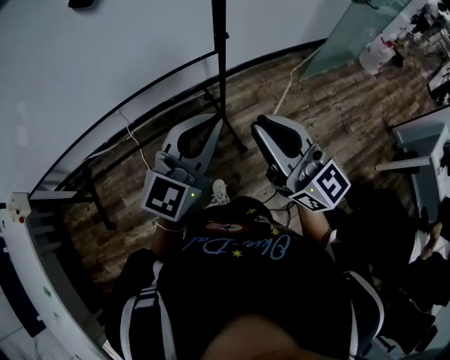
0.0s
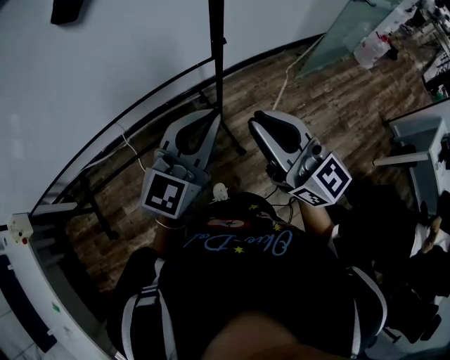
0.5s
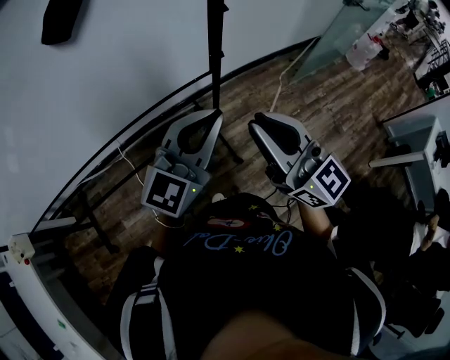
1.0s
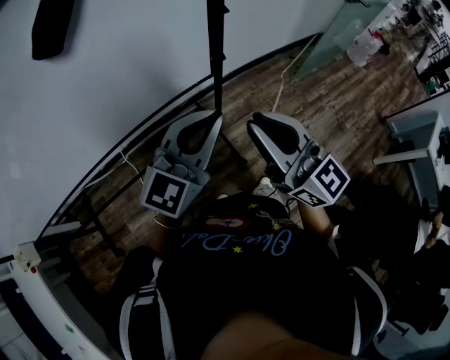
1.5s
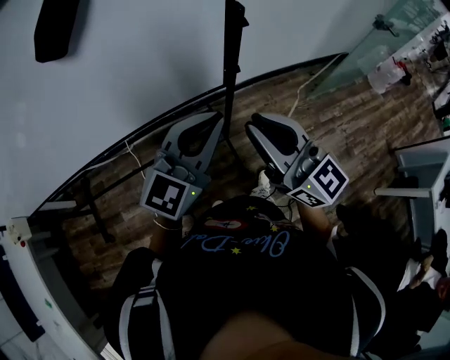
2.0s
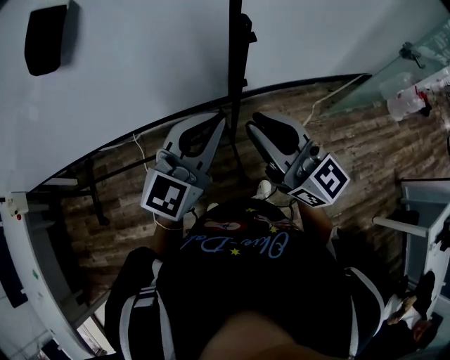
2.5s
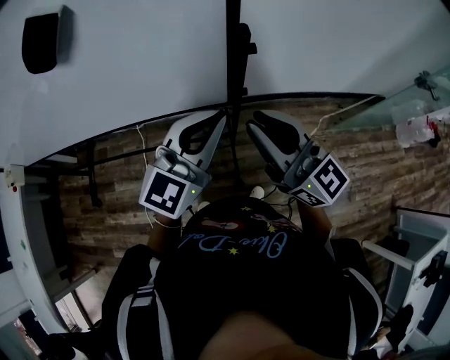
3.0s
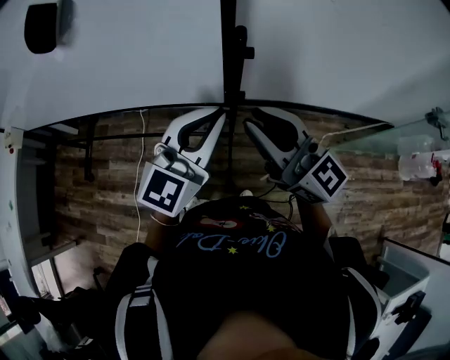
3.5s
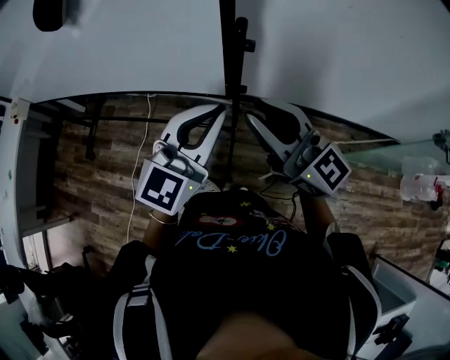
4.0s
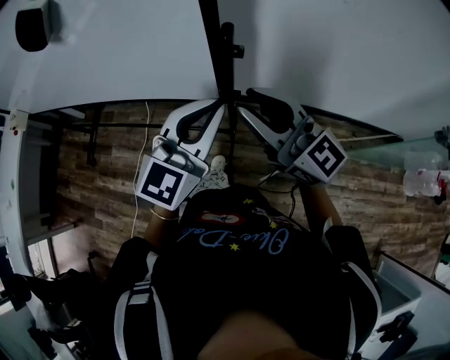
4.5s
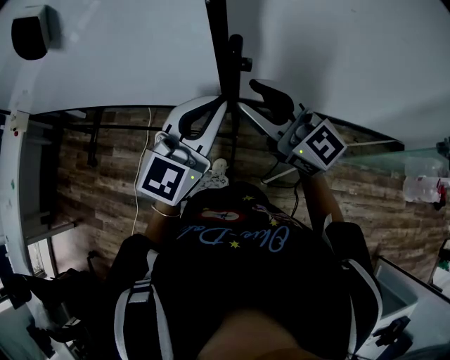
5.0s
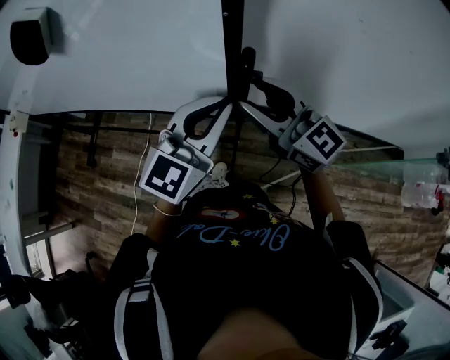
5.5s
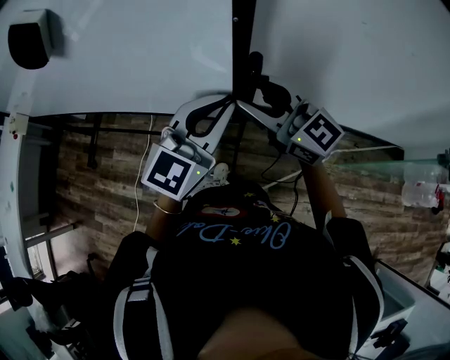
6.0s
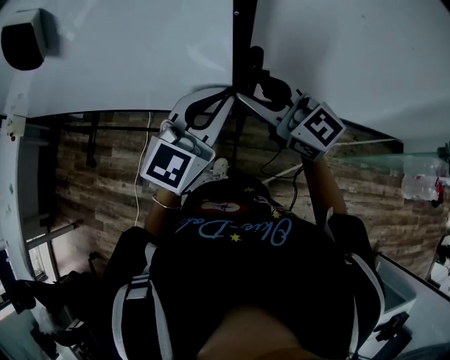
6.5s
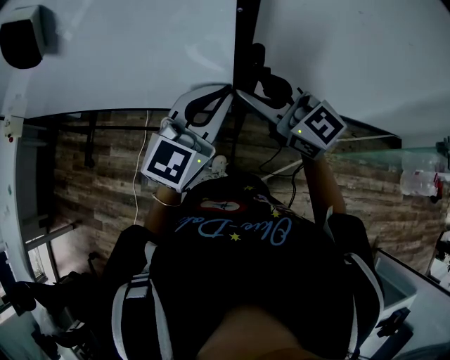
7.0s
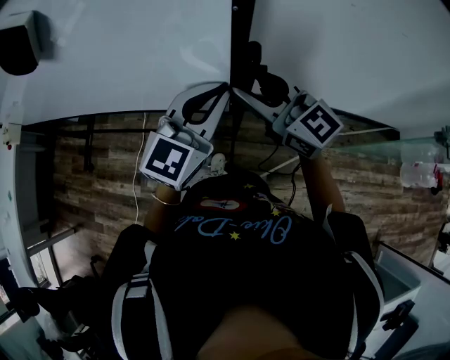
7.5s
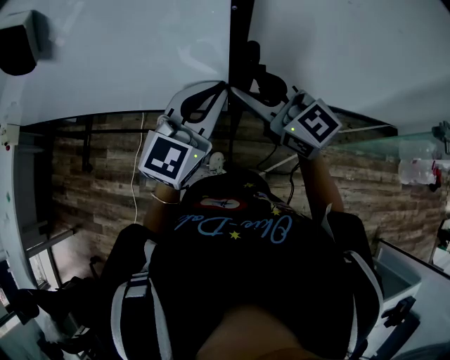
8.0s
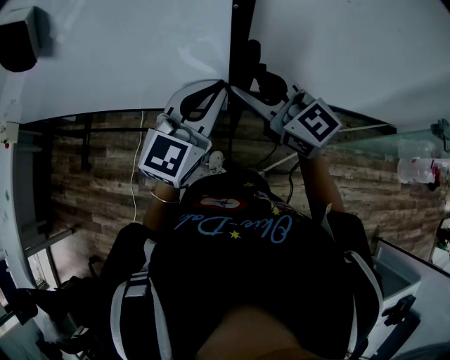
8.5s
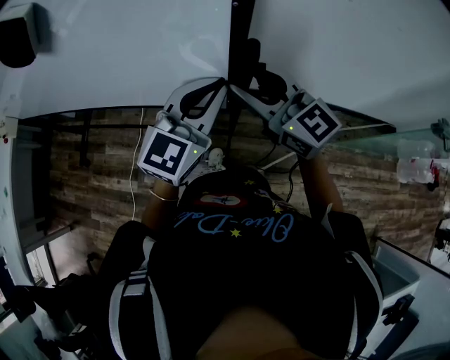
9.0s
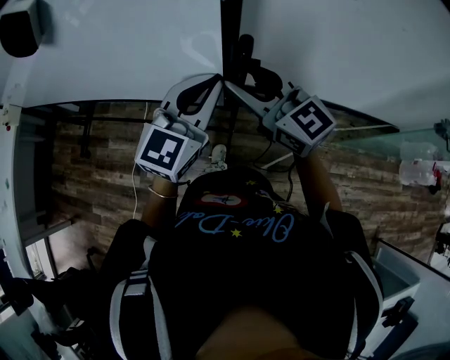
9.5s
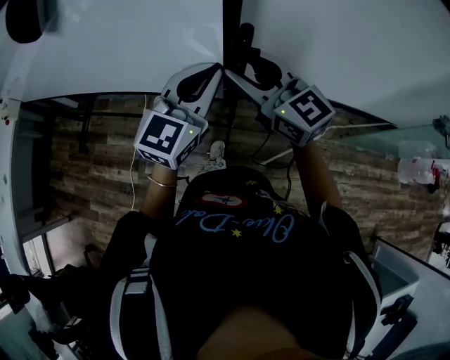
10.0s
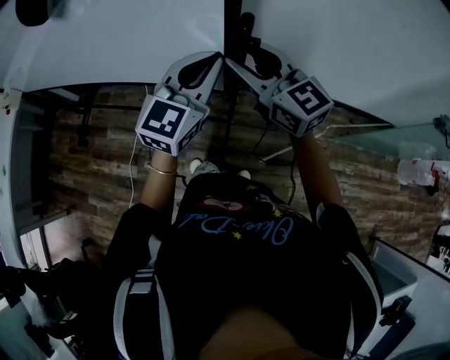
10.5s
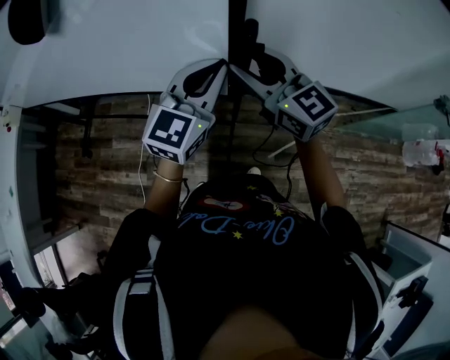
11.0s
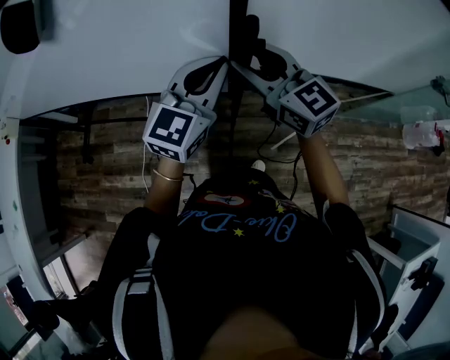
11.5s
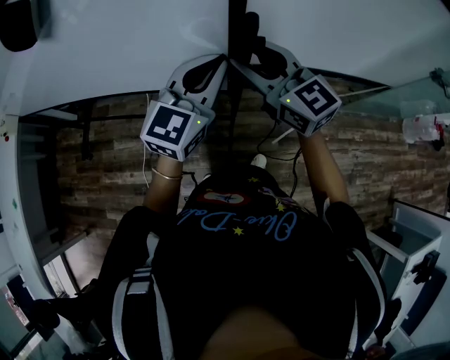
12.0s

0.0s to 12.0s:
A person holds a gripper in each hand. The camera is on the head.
0.0s to 2.0s: Both grippers travel together forward, about 15 cm.
2.0s to 4.0s: The left gripper ends up some 10 cm from where it was, and swivels some 30 degrees. The right gripper changes place by roughly 15 cm, and turns by some 40 degrees.
4.0s to 6.0s: The grippers both shift forward by roughly 10 cm. The right gripper opens its fingers.
6.0s to 10.0s: The grippers move only a little.
10.0s to 12.0s: The right gripper ends up some 5 cm from where it was, while the left gripper moves about 5 cm.

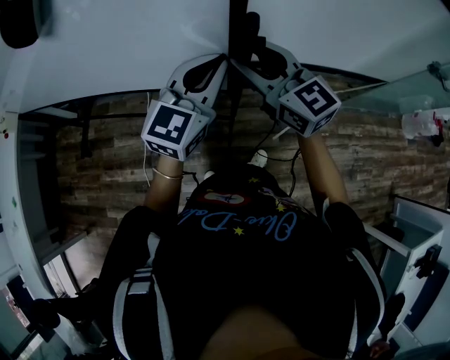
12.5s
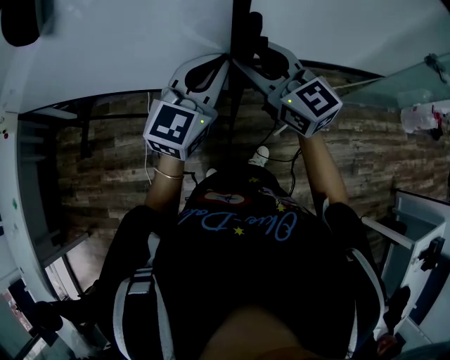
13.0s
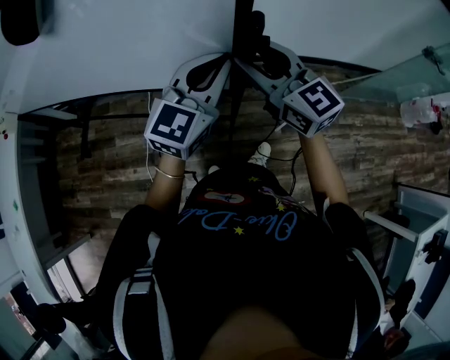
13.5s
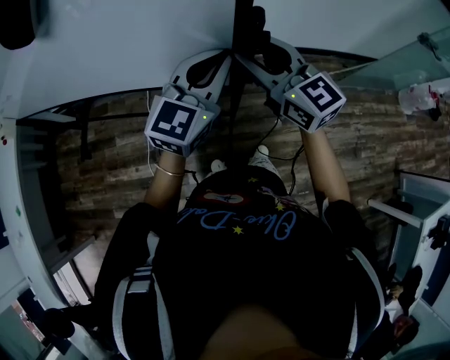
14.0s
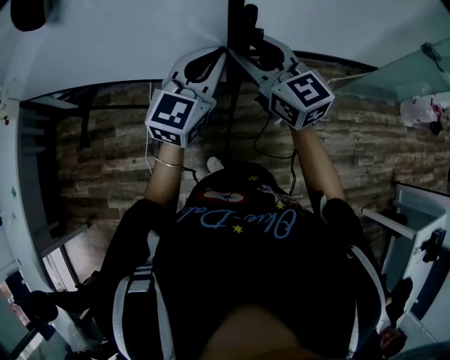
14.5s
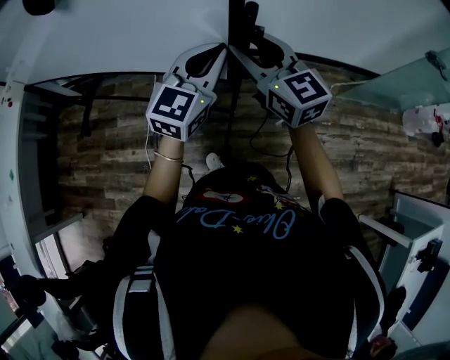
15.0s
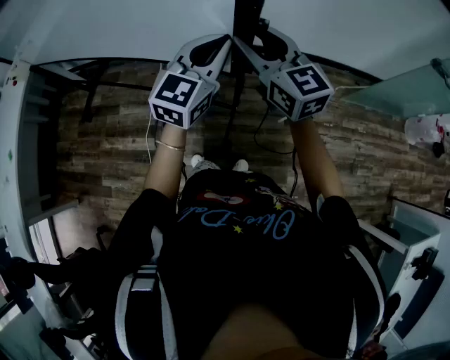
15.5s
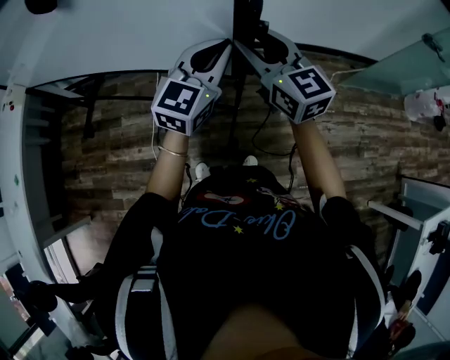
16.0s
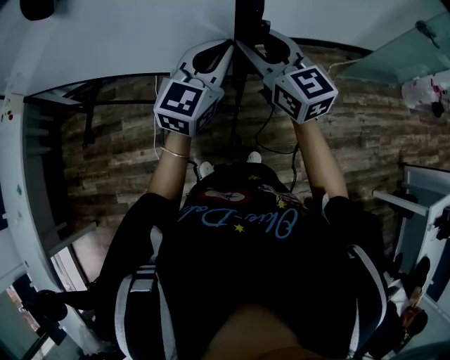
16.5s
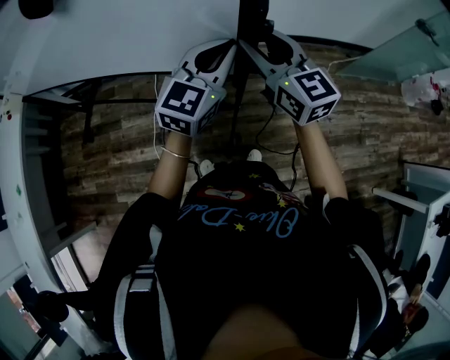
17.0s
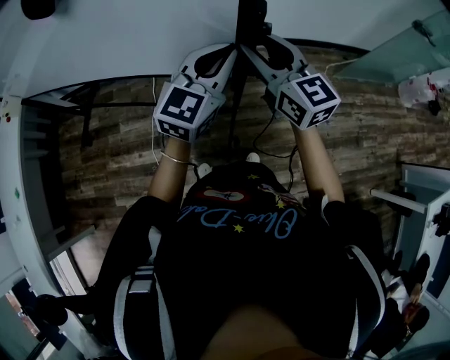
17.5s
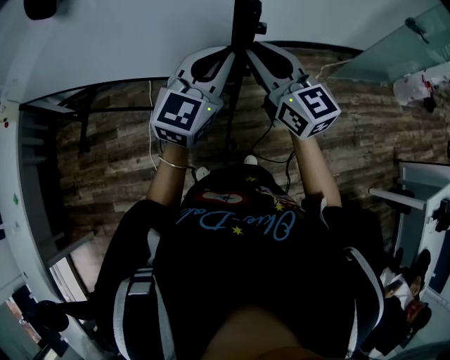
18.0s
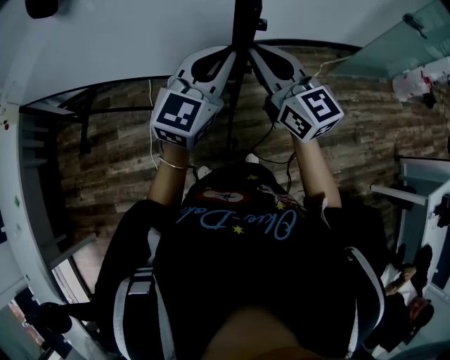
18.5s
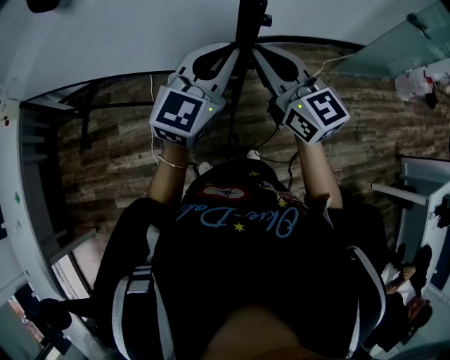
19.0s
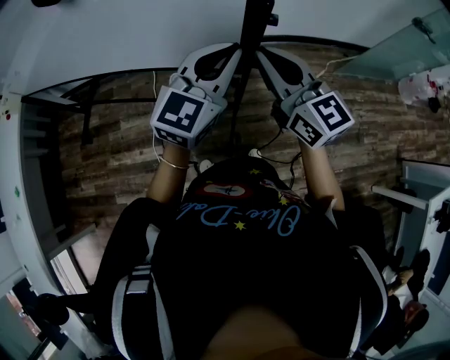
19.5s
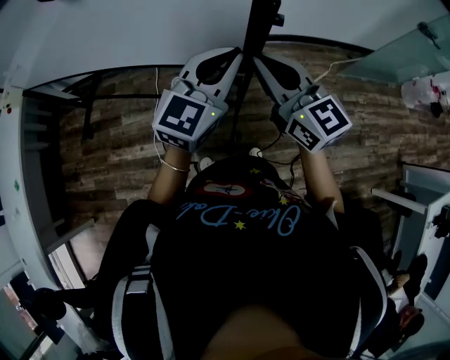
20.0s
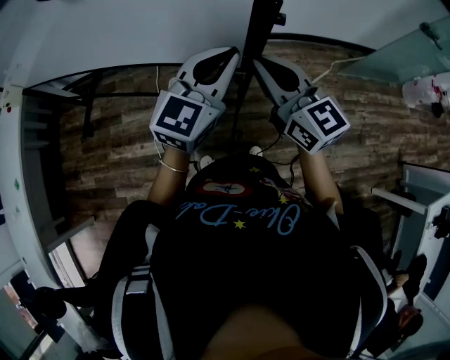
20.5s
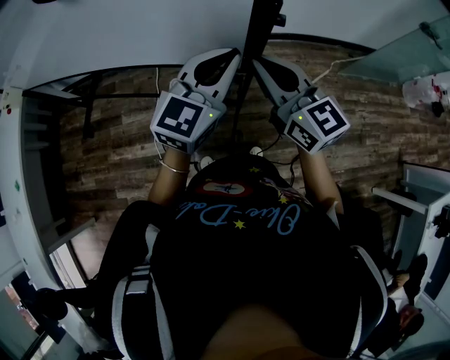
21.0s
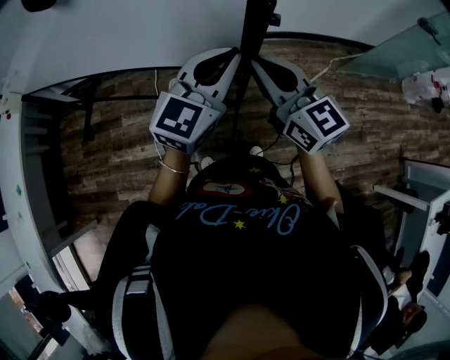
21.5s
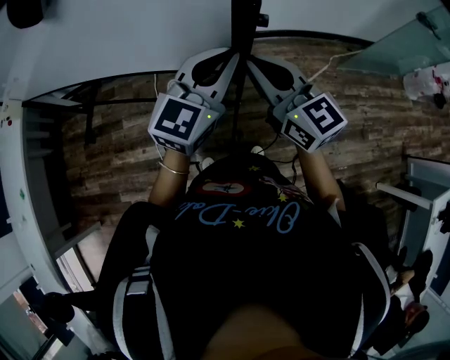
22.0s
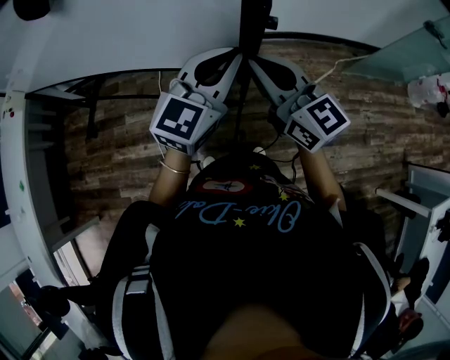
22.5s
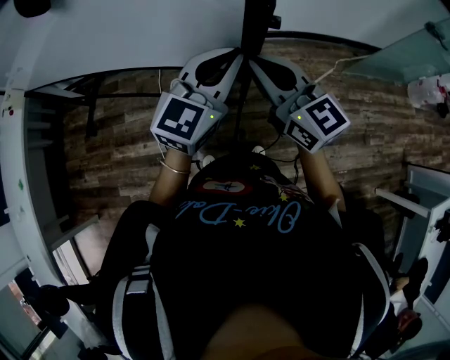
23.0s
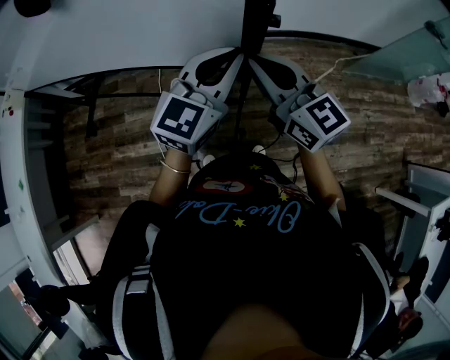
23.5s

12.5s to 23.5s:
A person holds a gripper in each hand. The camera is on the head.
12.5s to 14.5s: The two grippers go approximately 5 cm backward.
14.5s to 16.0s: There are only small adjustments of the grippers.
16.0s to 18.0s: The right gripper closes its fingers.
18.0s to 20.0s: The grippers stay close to where they were, moving slightly.
20.0s to 21.5s: The two grippers keep their place.
21.5s to 23.5s: The grippers move only a little.

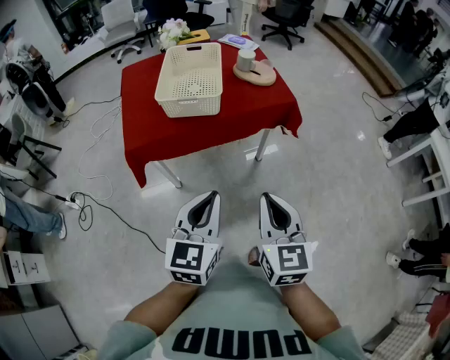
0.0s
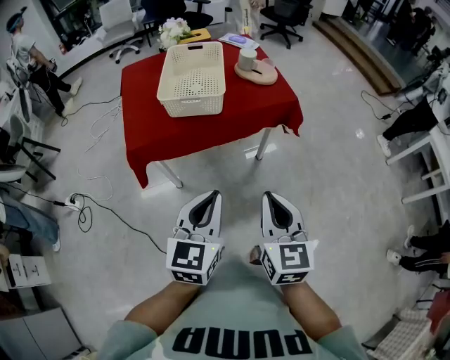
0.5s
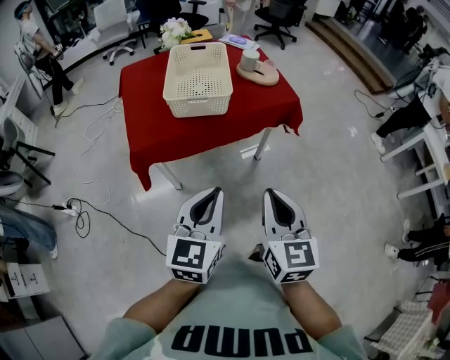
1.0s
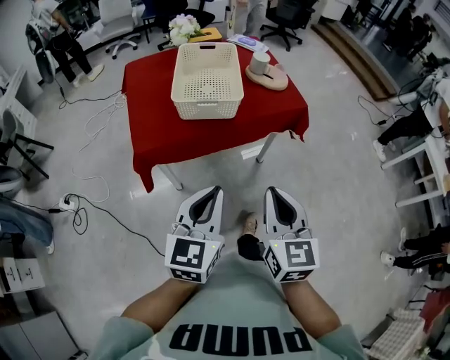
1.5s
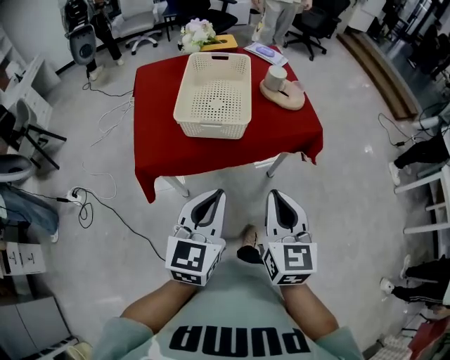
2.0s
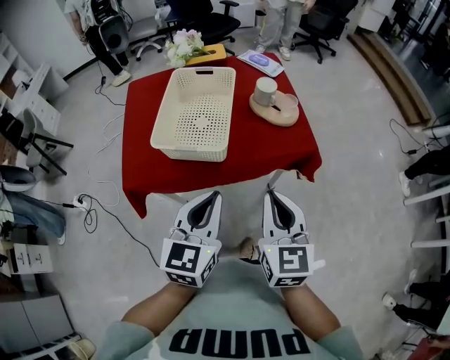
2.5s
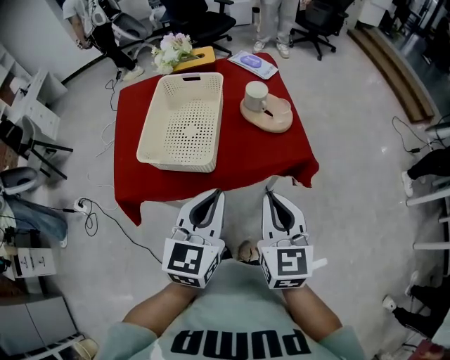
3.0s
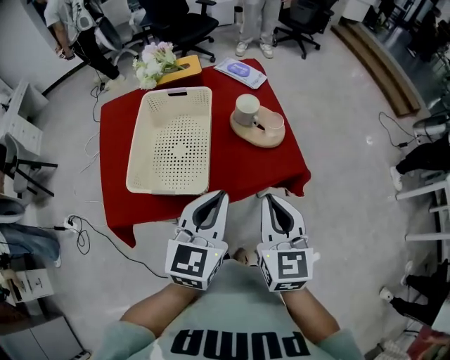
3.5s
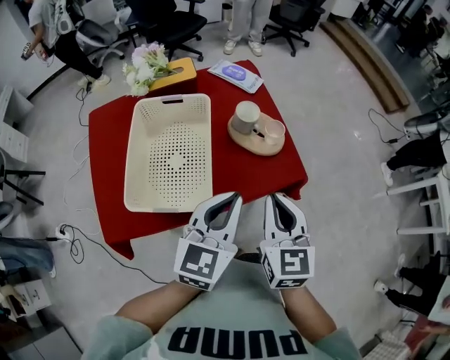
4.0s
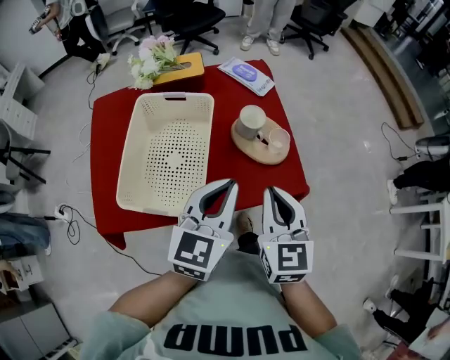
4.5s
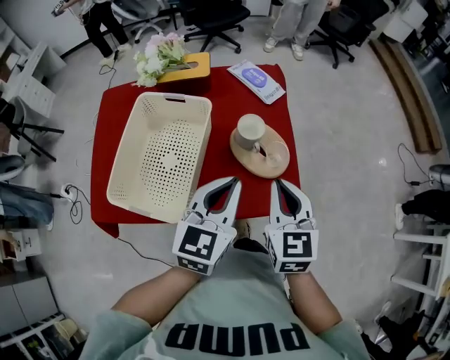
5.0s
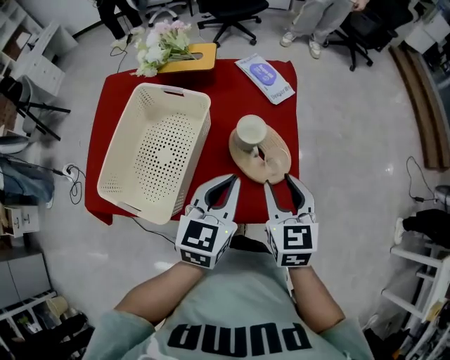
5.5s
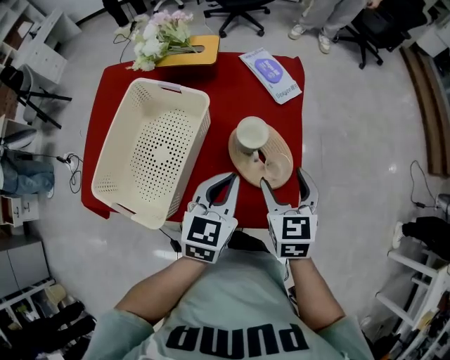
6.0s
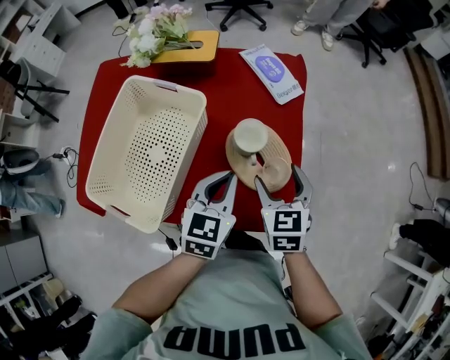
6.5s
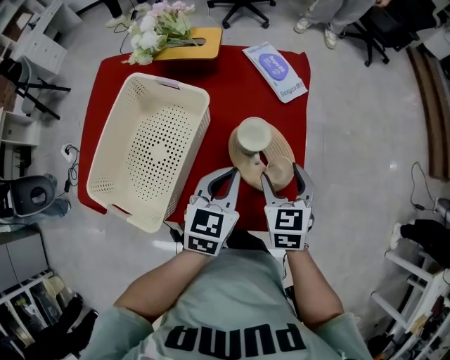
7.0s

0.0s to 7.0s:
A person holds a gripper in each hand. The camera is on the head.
0.0s to 2.0s: The grippers both shift forward and to the left by about 15 cm.
2.0s to 3.5s: The two grippers go roughly 25 cm forward and to the right.
3.5s to 5.0s: The grippers both shift forward by about 15 cm.
5.0s to 7.0s: Both grippers travel together downward and forward, approximately 15 cm. The right gripper opens up.
